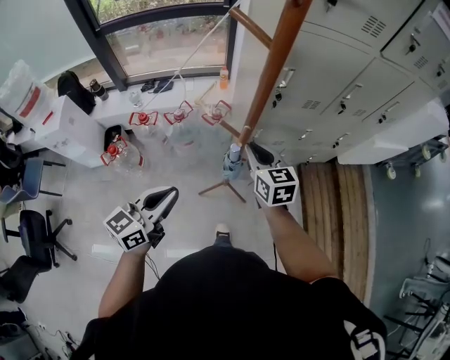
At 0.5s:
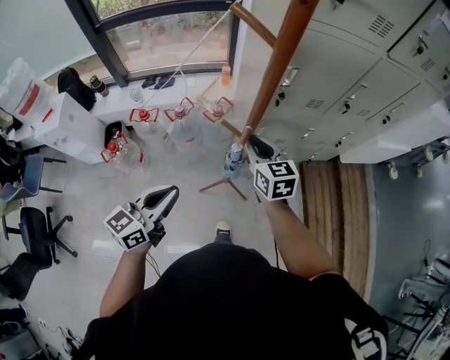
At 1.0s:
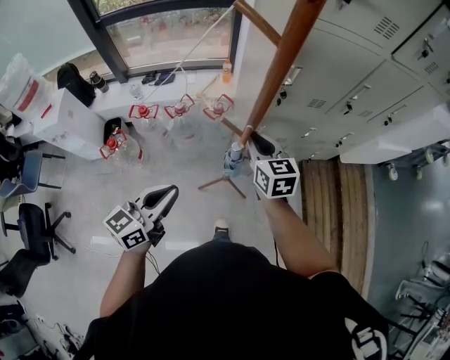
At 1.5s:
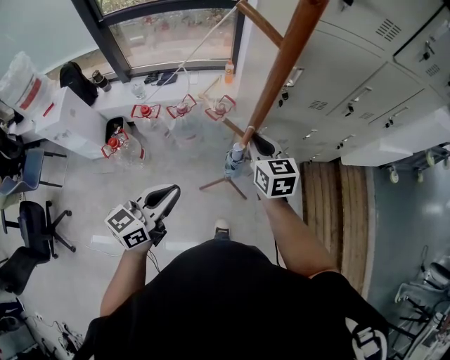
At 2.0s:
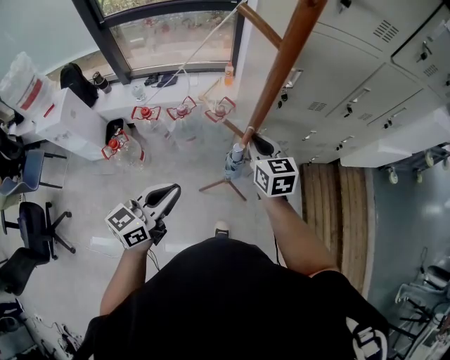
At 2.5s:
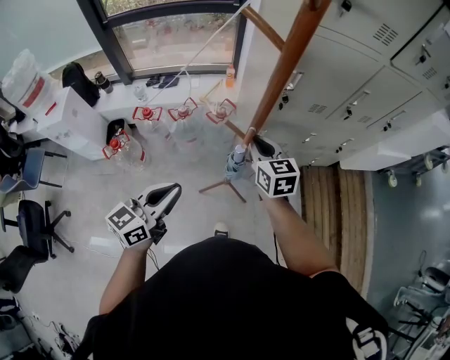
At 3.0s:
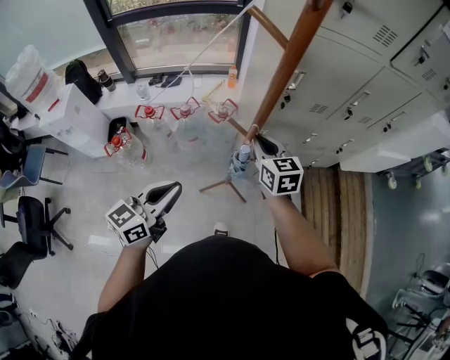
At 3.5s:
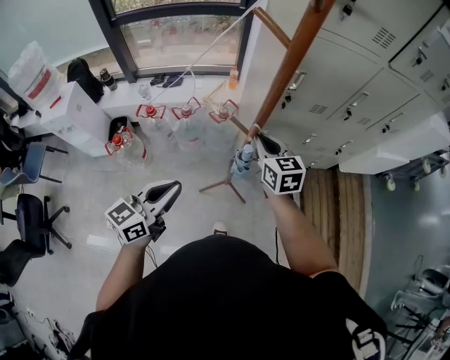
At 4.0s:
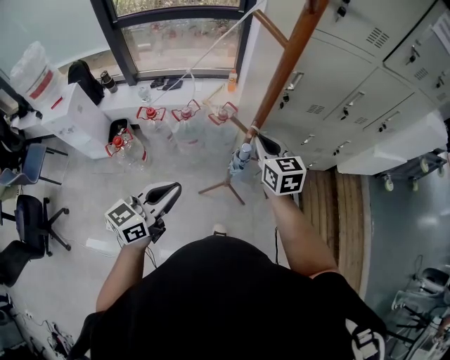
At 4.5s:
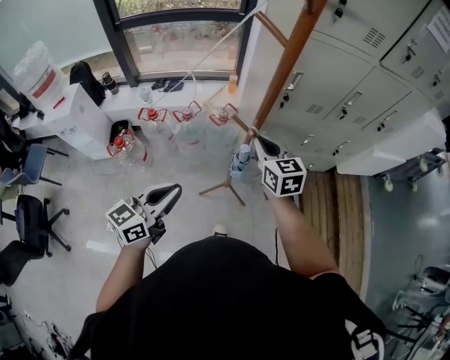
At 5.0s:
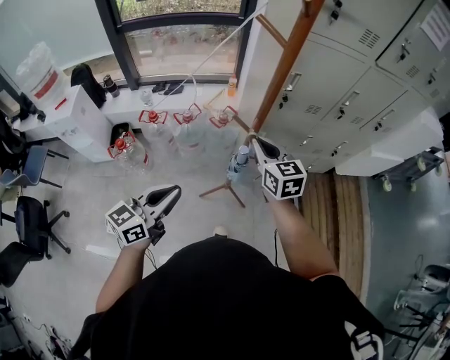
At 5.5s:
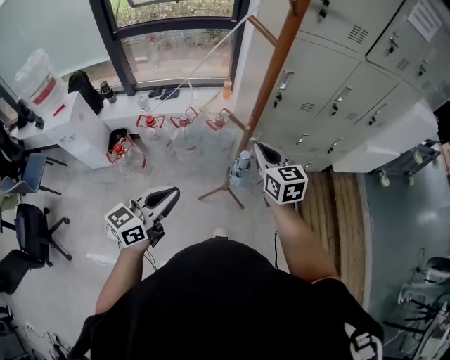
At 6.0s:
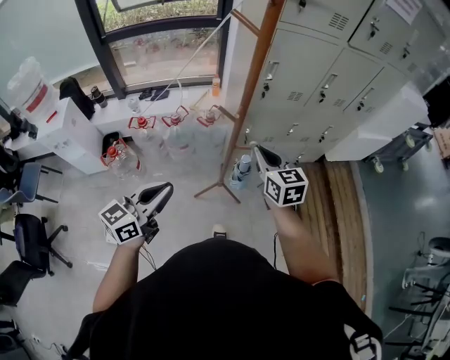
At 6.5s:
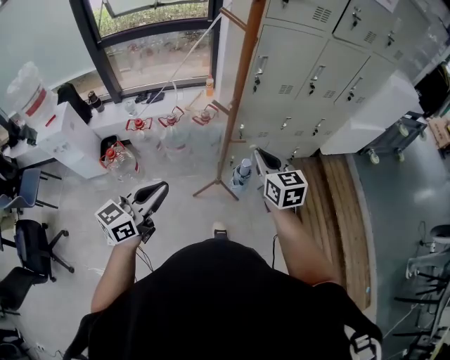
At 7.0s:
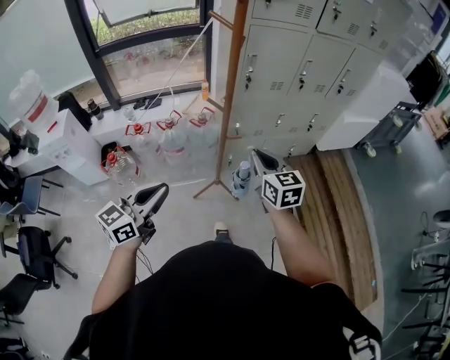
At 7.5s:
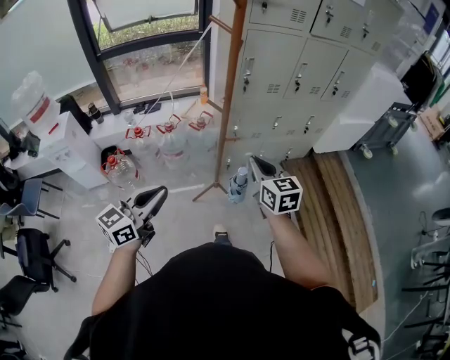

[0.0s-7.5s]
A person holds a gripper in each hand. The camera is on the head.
0.0s to 2.0s: The grippers move only a little.
2.0s to 4.0s: The left gripper moves backward, roughly 5 cm, while the right gripper ends up roughly 5 cm from where it was.
4.0s to 5.5s: The two grippers go approximately 5 cm backward.
5.5s to 7.5s: The right gripper travels backward and to the right by roughly 25 cm. Meanwhile the left gripper goes approximately 15 cm backward.

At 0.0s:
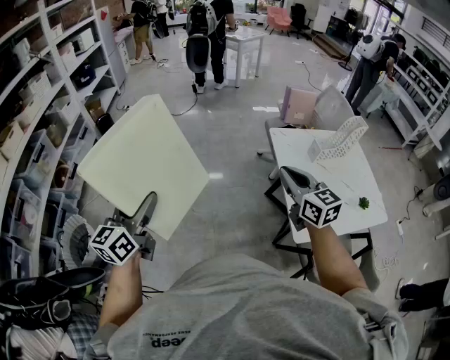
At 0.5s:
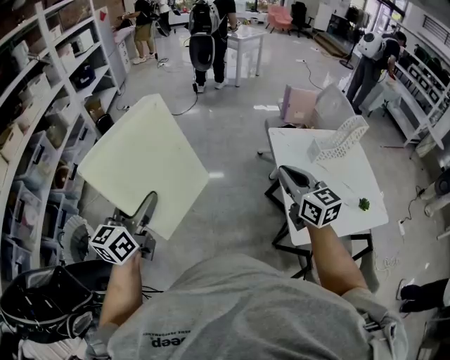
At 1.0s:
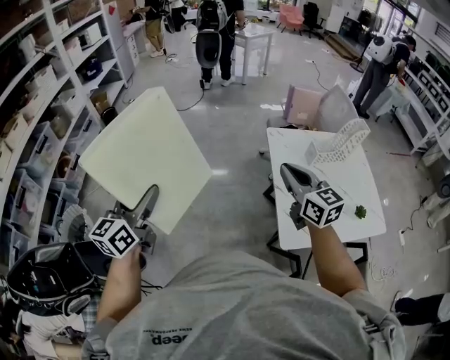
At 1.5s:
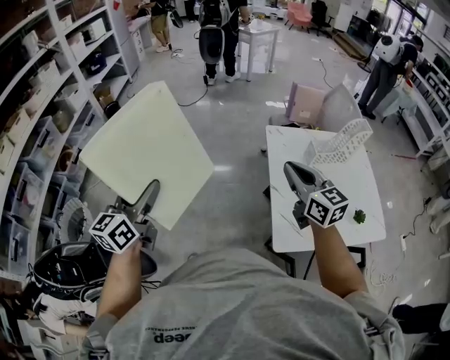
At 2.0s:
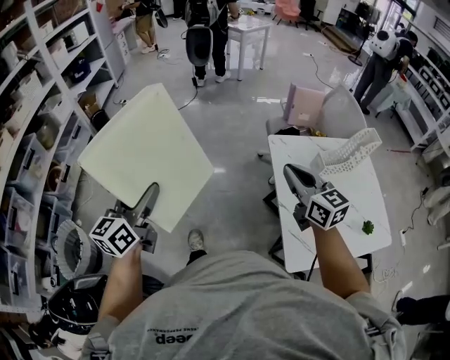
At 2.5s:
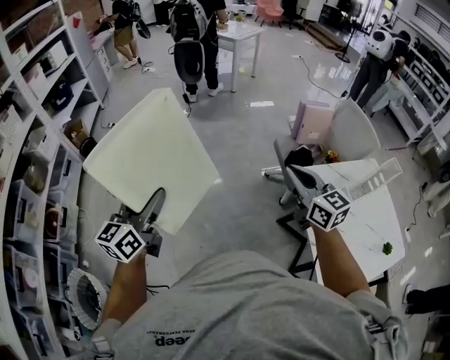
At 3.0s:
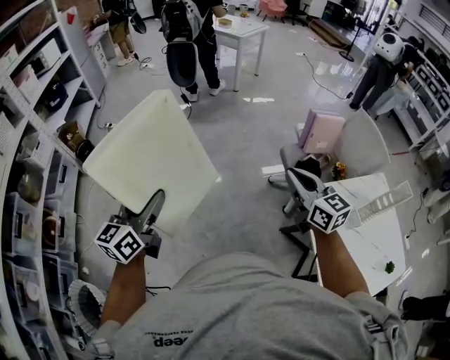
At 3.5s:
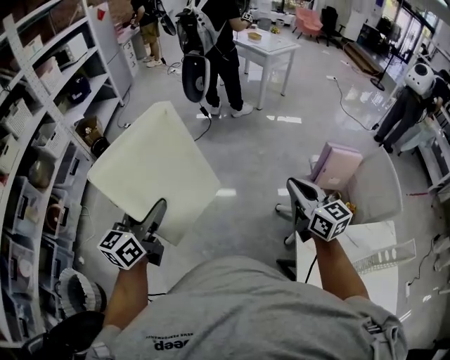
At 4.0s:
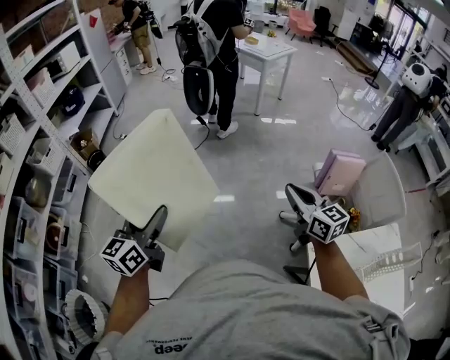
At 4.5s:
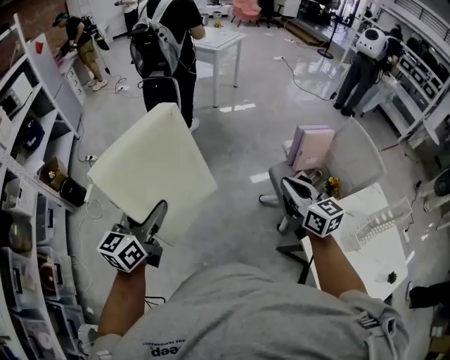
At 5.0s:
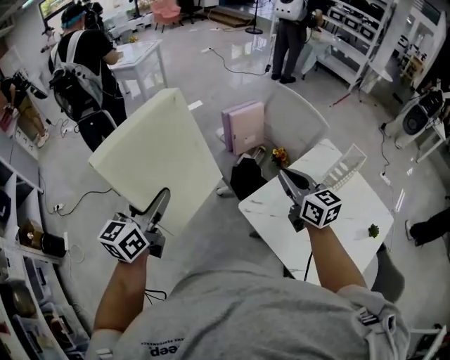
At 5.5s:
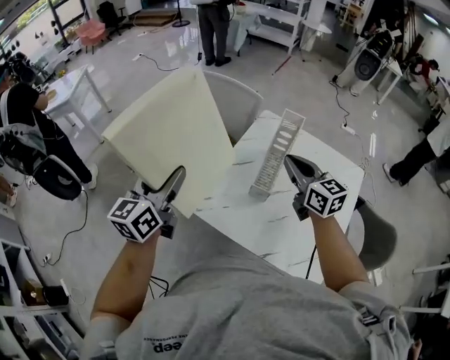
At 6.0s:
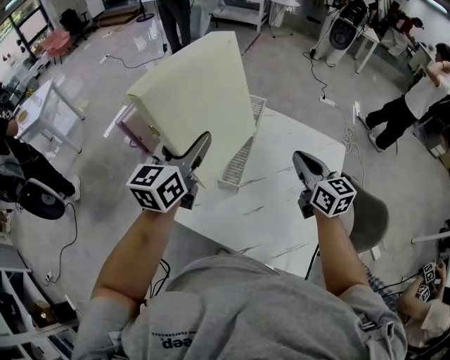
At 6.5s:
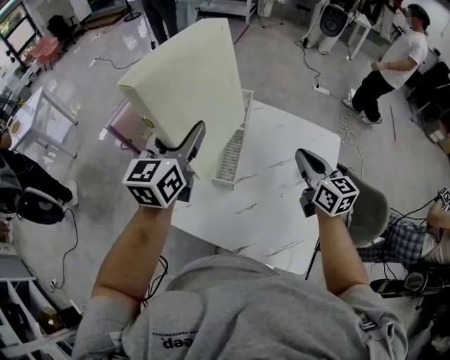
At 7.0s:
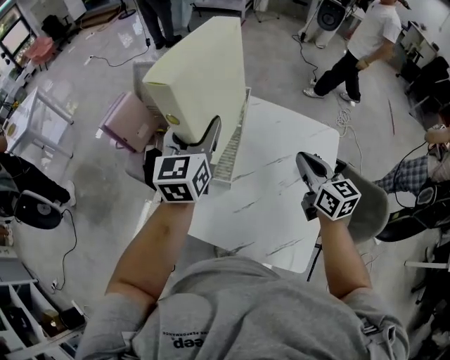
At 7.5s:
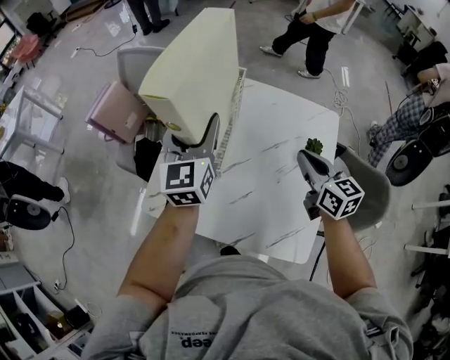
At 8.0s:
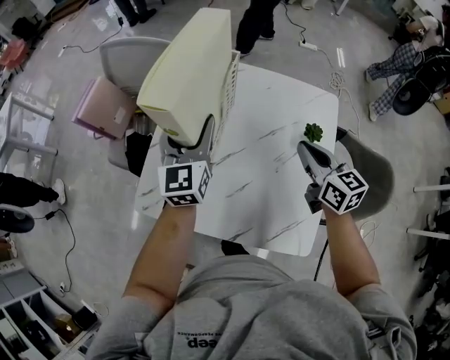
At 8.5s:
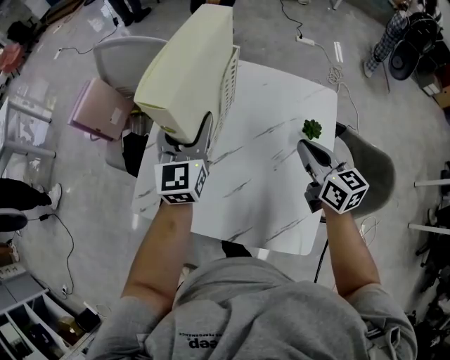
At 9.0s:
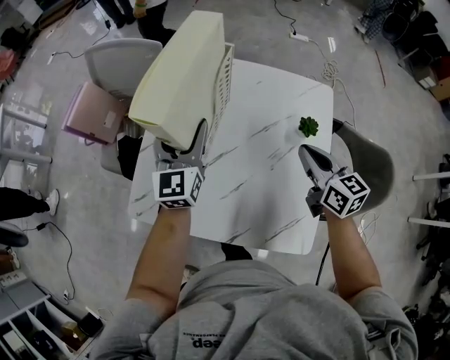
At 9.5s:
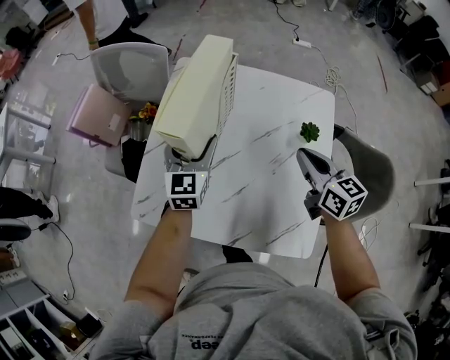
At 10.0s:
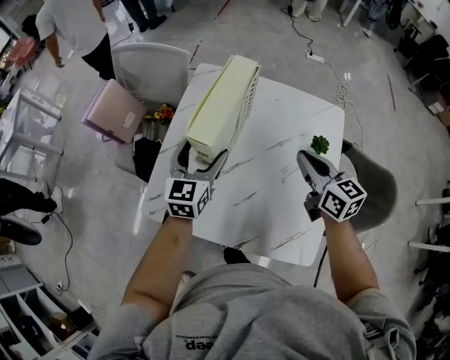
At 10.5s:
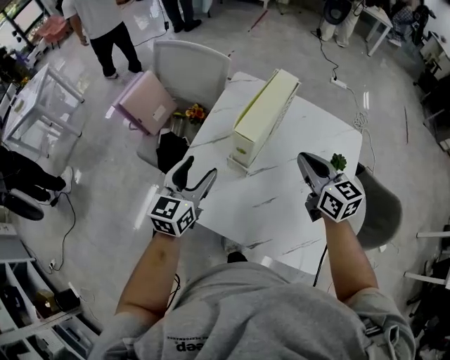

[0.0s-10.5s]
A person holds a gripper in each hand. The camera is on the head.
0.0s to 2.0s: The two grippers go about 15 cm forward and to the right.
2.0s to 4.0s: Both grippers are carried forward, about 50 cm.
4.0s to 6.5s: Both grippers are carried roughly 80 cm. The right gripper turns by roughly 70 degrees. Meanwhile the left gripper changes its angle by approximately 70 degrees.
6.5s to 8.5s: The left gripper moves downward and to the right, some 15 cm; the right gripper moves downward, approximately 10 cm.
8.5s to 10.5s: The left gripper moves to the left and backward, approximately 15 cm. Meanwhile the right gripper heads to the left, covering some 10 cm.

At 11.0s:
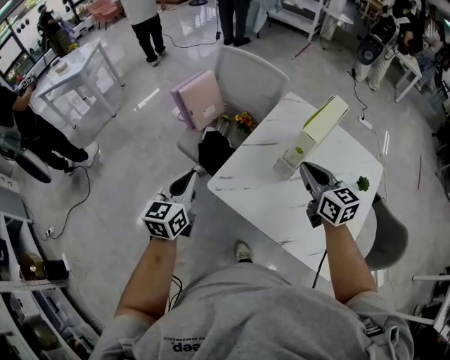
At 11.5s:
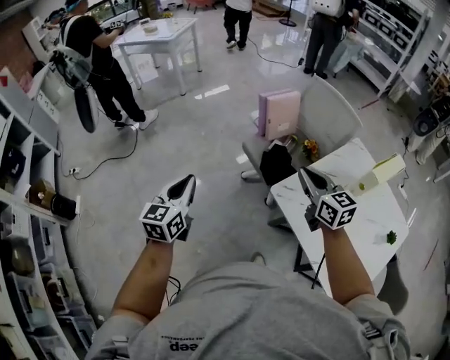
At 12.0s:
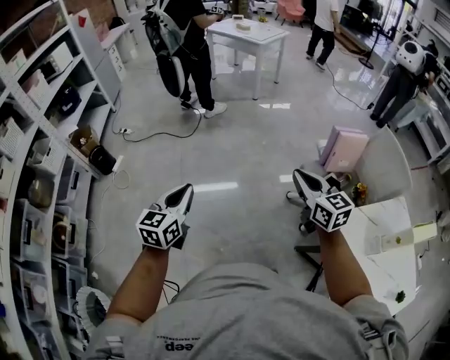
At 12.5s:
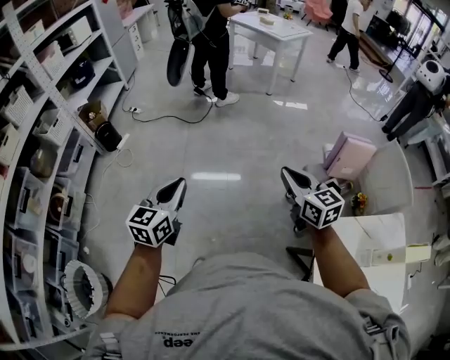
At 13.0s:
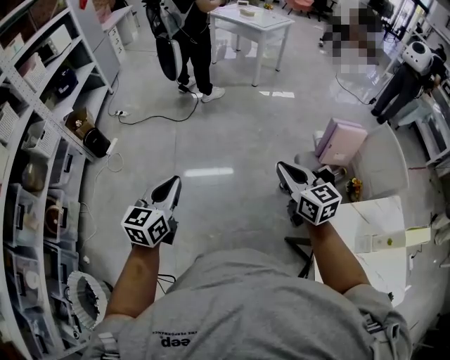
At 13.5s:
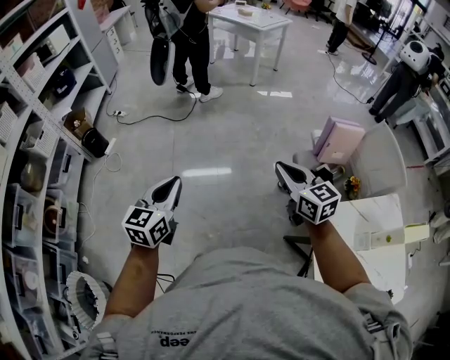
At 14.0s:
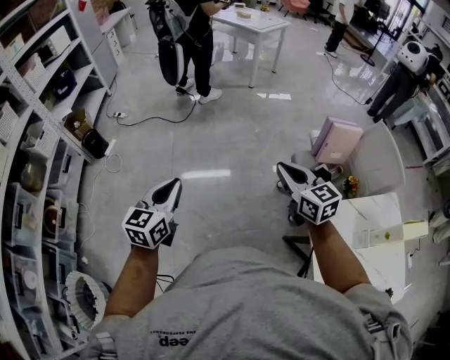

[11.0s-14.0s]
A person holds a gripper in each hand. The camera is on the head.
11.0s to 12.5s: The pair of grippers is taken roughly 50 cm. The left gripper swivels about 50 degrees, while the right gripper swivels about 60 degrees.
12.5s to 14.0s: There are only small adjustments of the grippers.

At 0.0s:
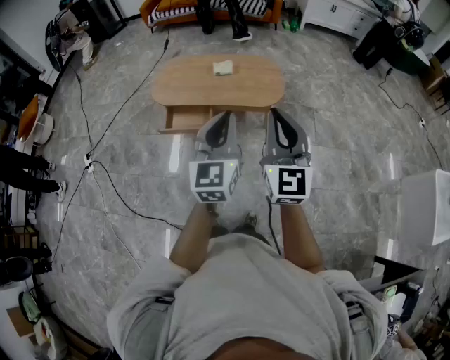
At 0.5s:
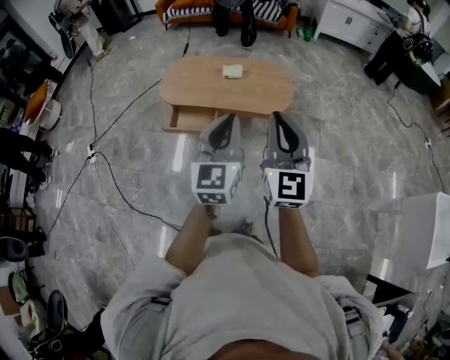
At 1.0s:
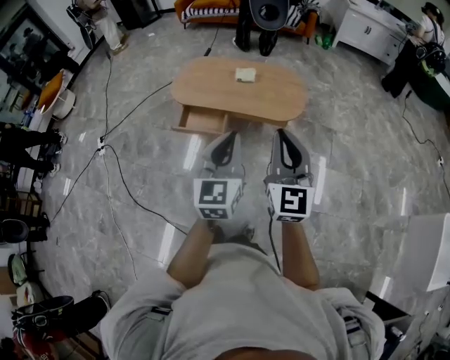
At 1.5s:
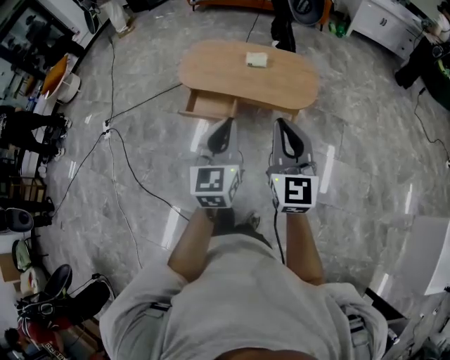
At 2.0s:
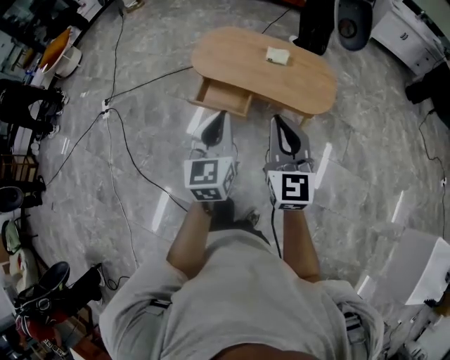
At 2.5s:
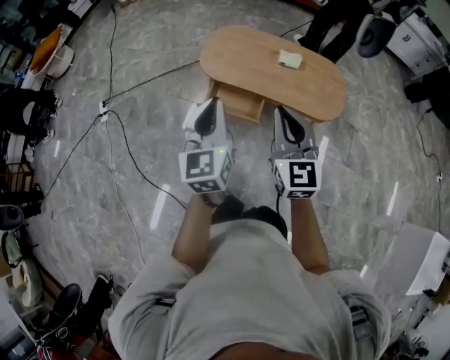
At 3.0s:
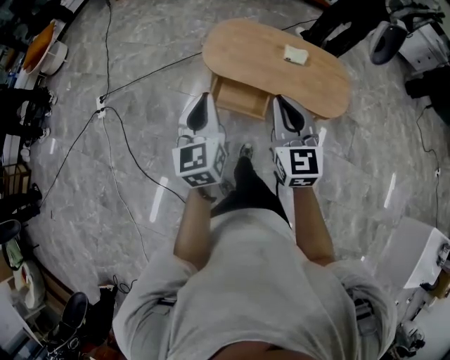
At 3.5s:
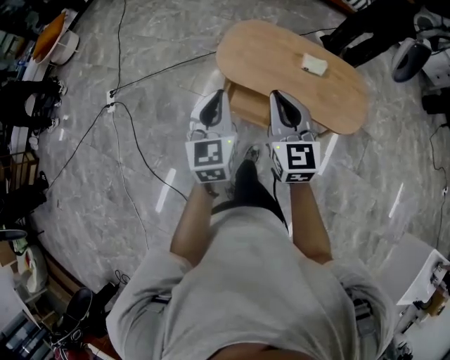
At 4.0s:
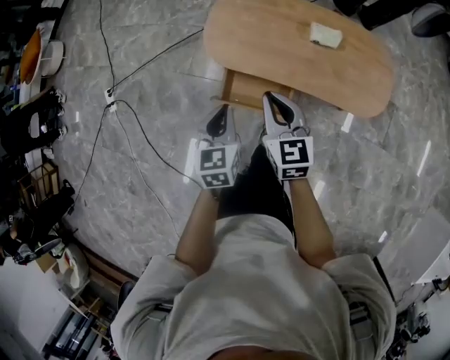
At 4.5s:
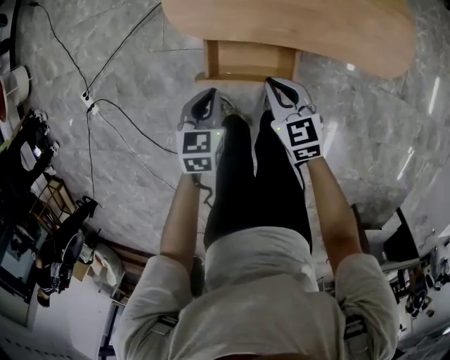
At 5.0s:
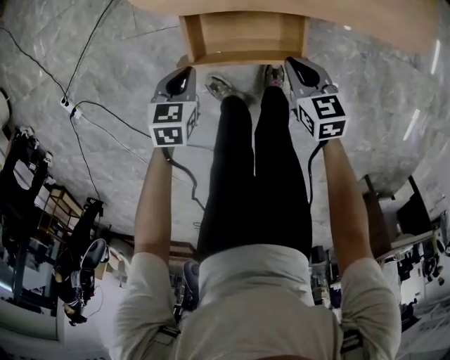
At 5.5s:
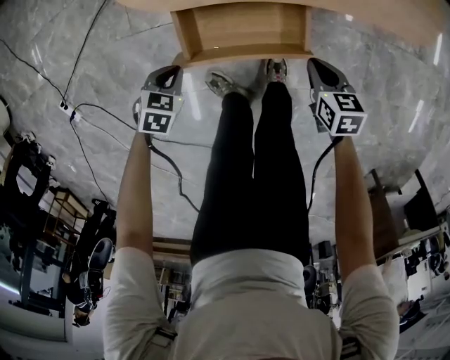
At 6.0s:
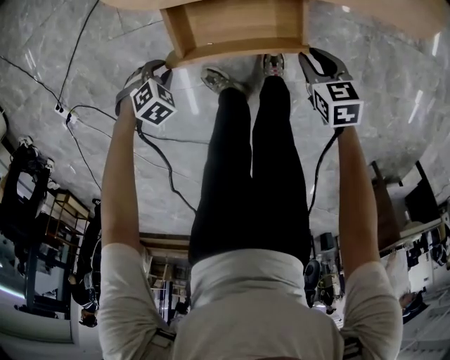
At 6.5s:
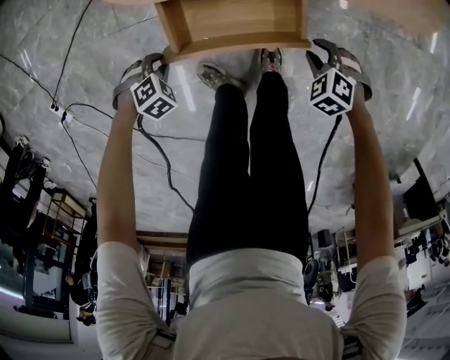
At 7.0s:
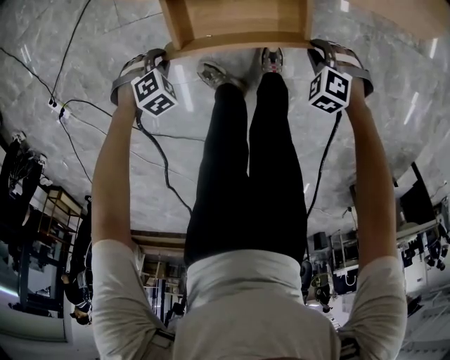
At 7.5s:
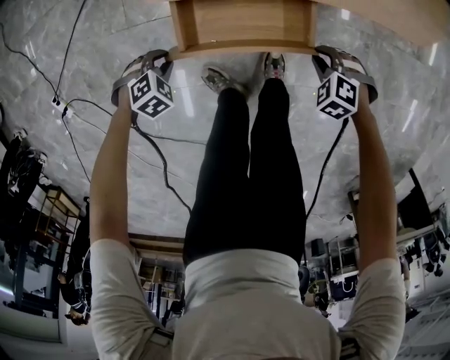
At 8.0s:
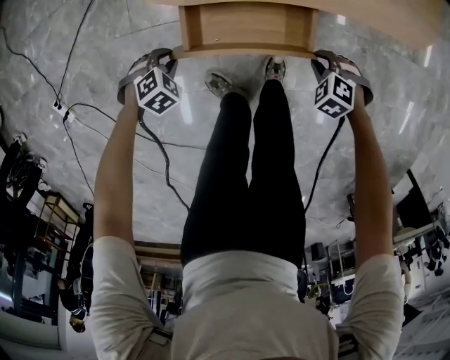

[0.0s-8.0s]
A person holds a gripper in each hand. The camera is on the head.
0.0s to 2.0s: The left gripper goes some 20 cm to the left, forward and downward, and turns by some 20 degrees. Meanwhile the right gripper moves forward, to the left and downward, approximately 20 cm, and swivels approximately 20 degrees.
2.0s to 4.0s: Both grippers move forward and downward, roughly 40 cm. The right gripper changes its angle by roughly 30 degrees; the left gripper turns by approximately 30 degrees.
4.0s to 6.0s: The two grippers go roughly 50 cm downward. The left gripper tips its fingers downward by approximately 50 degrees, and opens. Meanwhile the right gripper angles its fingers downward, by approximately 40 degrees, and opens up.
6.0s to 8.0s: The right gripper twists about 60 degrees counterclockwise, seen from behind.
